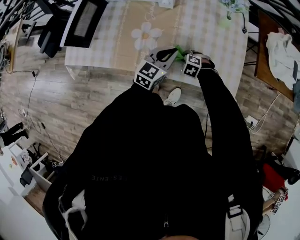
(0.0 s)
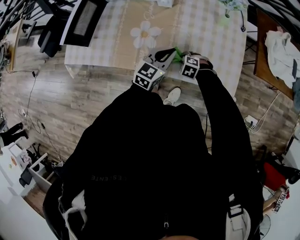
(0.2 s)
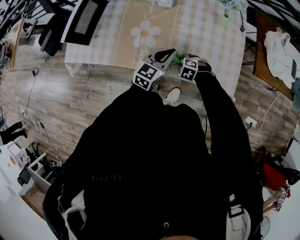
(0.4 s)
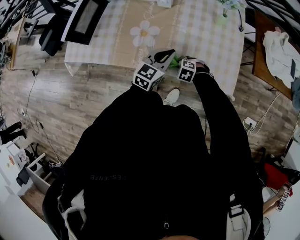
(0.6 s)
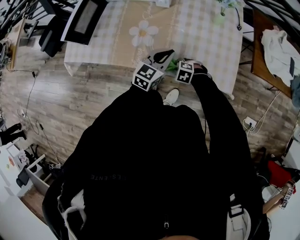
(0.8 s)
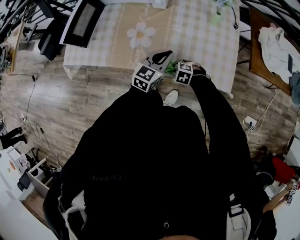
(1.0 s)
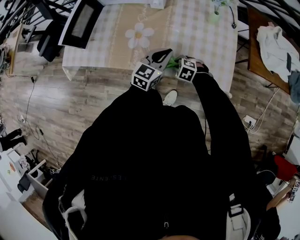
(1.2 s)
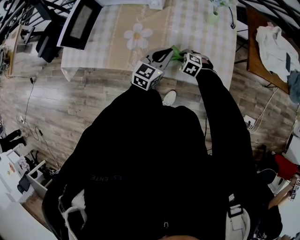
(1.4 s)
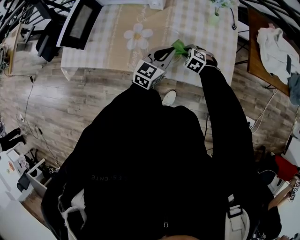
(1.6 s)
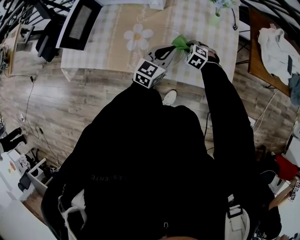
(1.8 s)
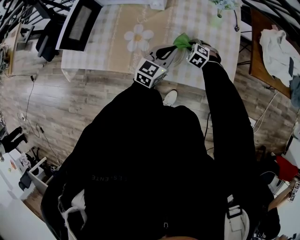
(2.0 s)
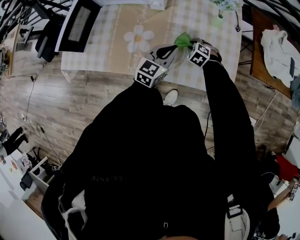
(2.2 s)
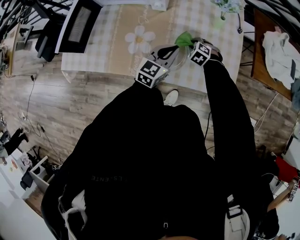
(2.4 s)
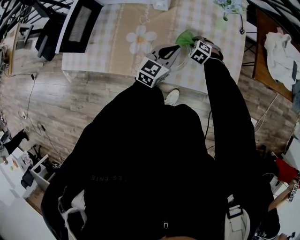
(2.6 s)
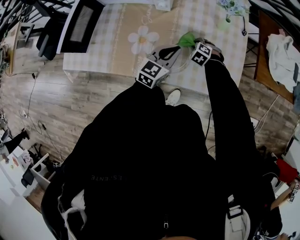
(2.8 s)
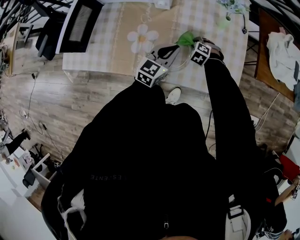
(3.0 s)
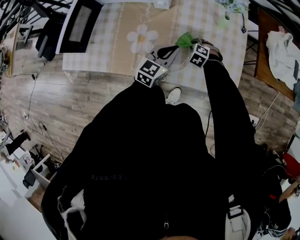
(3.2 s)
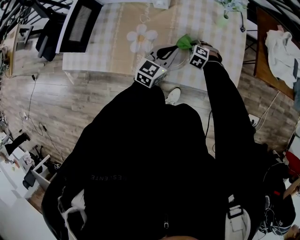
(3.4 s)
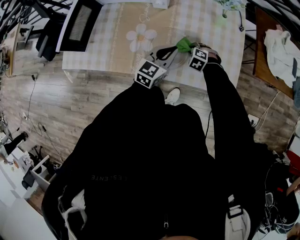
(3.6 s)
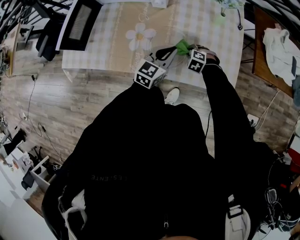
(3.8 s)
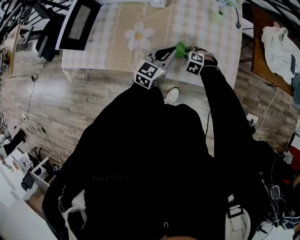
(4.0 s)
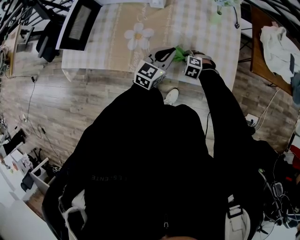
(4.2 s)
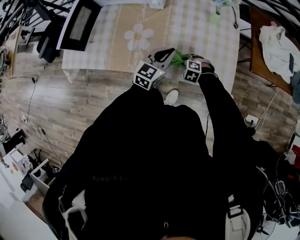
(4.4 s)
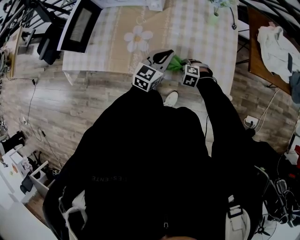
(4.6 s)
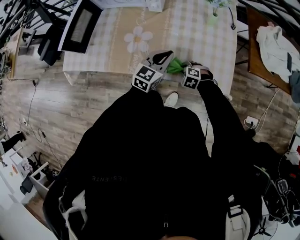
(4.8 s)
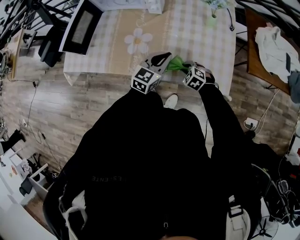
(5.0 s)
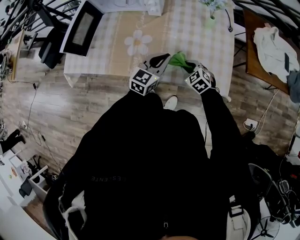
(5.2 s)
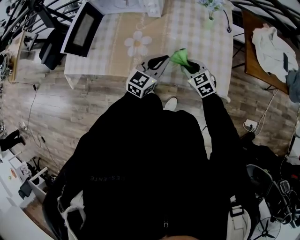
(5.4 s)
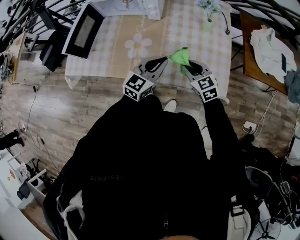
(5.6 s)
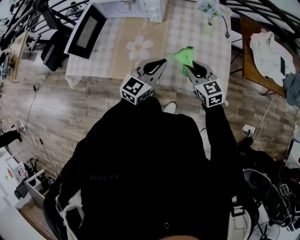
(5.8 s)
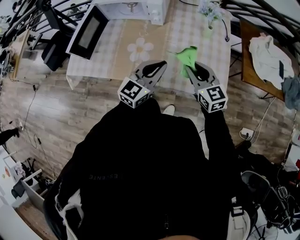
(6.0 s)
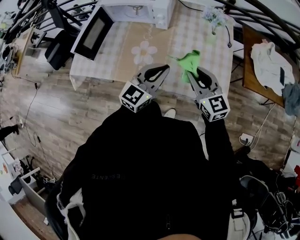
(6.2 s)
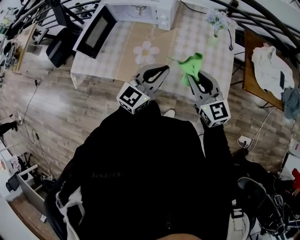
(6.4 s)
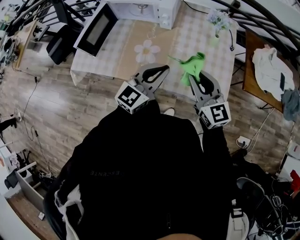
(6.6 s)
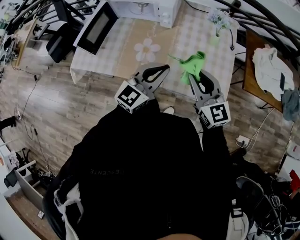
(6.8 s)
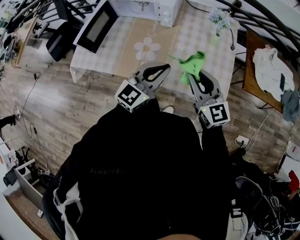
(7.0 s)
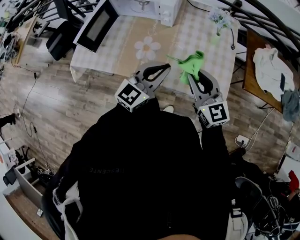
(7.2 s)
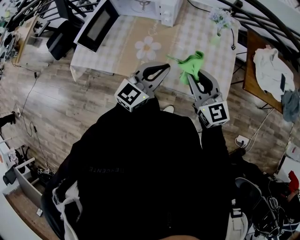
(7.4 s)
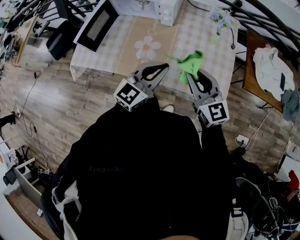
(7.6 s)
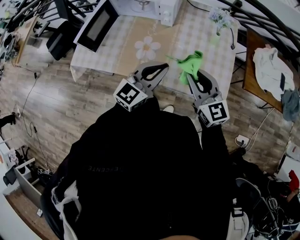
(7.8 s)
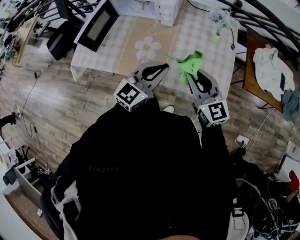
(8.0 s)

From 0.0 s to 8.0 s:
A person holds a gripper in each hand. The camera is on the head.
From 0.0 s to 1.6 s: The right gripper travels to the right by about 5 cm, and travels backward and back again, approximately 10 cm each way.
From 1.6 s to 3.2 s: The right gripper shifts roughly 10 cm forward. The left gripper goes about 5 cm forward.
From 3.2 s to 4.8 s: The right gripper heads backward, covering approximately 15 cm. Meanwhile the left gripper heads backward, covering approximately 5 cm.
From 4.8 s to 6.4 s: The right gripper moves upward, roughly 35 cm, and angles its fingers upward, by about 60 degrees. The left gripper goes some 15 cm upward and backward.
From 6.4 s to 8.0 s: The grippers make only small movements.

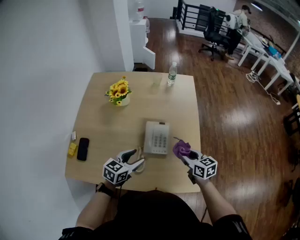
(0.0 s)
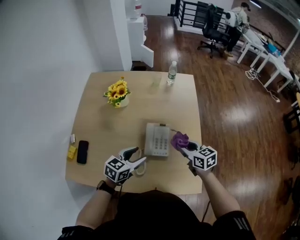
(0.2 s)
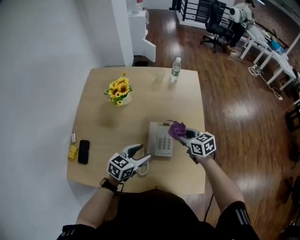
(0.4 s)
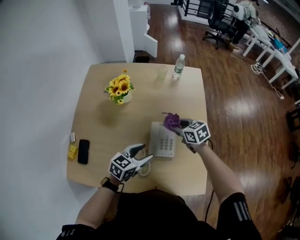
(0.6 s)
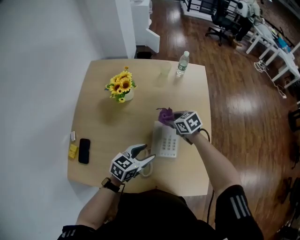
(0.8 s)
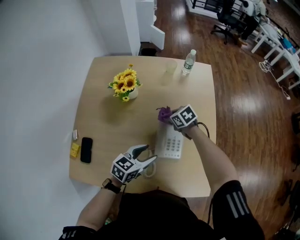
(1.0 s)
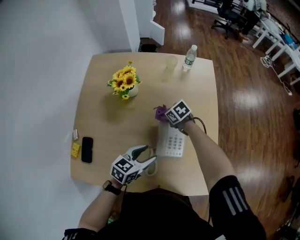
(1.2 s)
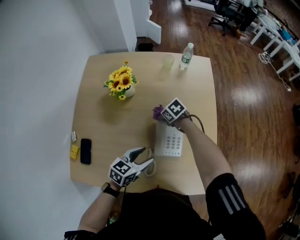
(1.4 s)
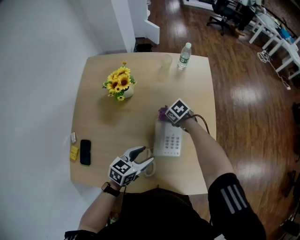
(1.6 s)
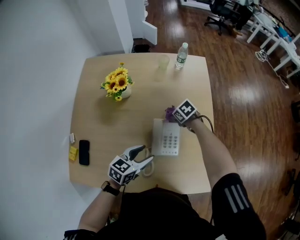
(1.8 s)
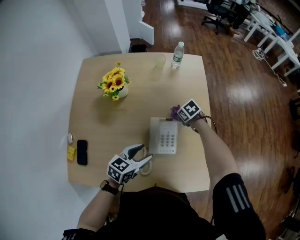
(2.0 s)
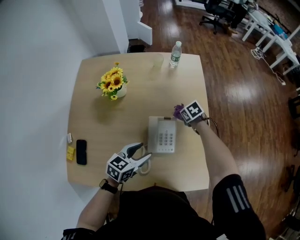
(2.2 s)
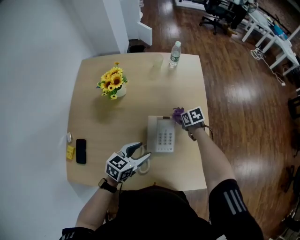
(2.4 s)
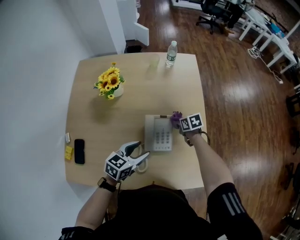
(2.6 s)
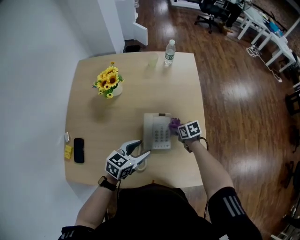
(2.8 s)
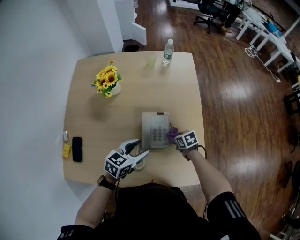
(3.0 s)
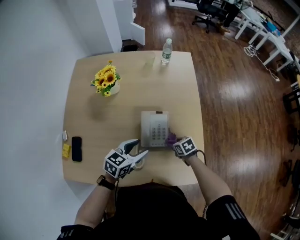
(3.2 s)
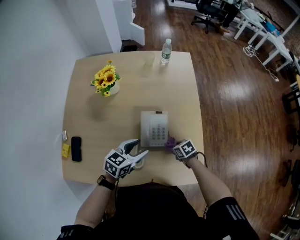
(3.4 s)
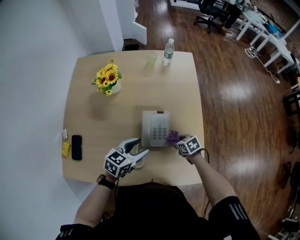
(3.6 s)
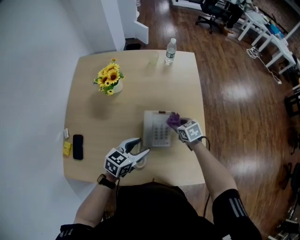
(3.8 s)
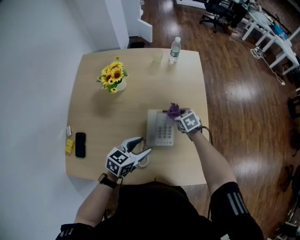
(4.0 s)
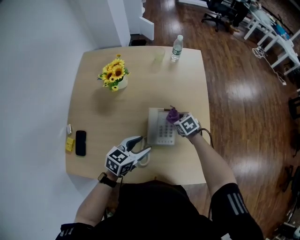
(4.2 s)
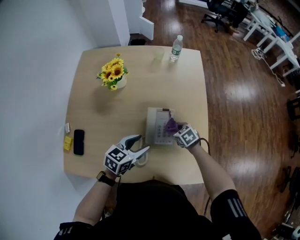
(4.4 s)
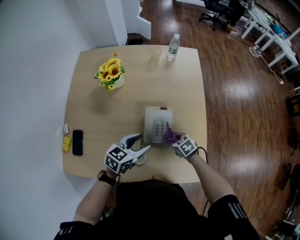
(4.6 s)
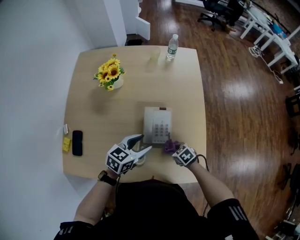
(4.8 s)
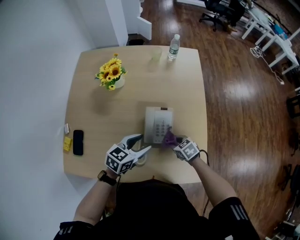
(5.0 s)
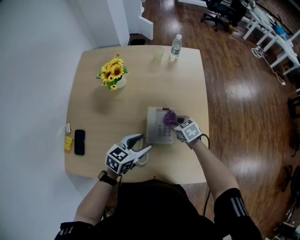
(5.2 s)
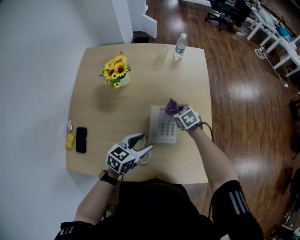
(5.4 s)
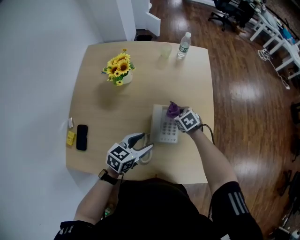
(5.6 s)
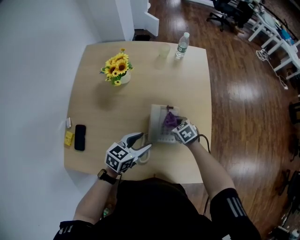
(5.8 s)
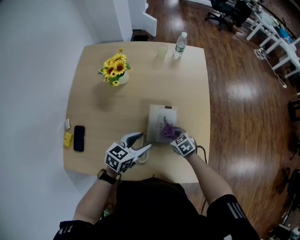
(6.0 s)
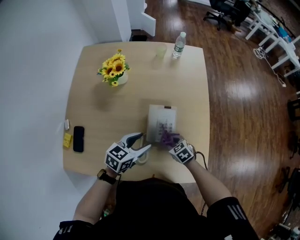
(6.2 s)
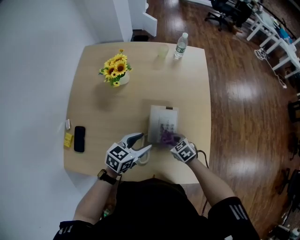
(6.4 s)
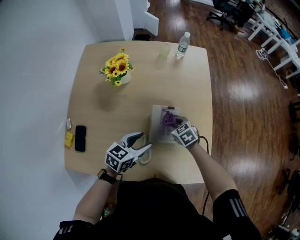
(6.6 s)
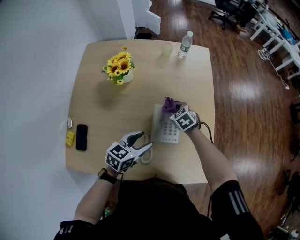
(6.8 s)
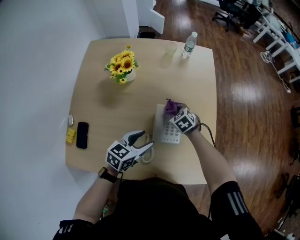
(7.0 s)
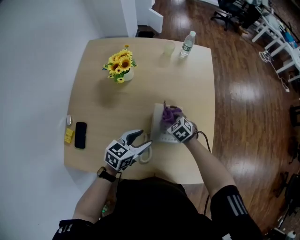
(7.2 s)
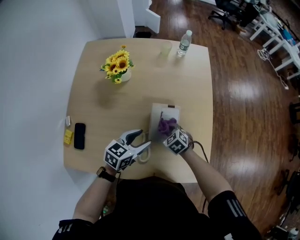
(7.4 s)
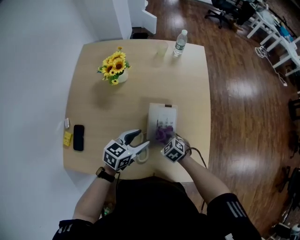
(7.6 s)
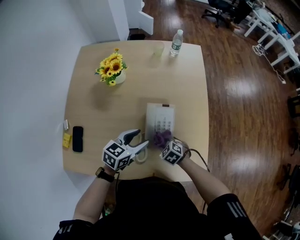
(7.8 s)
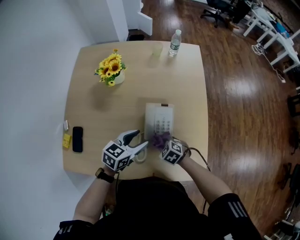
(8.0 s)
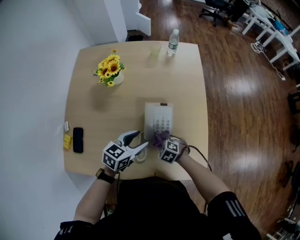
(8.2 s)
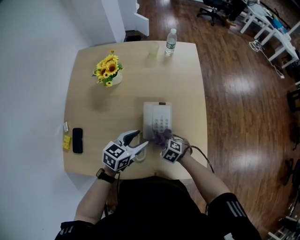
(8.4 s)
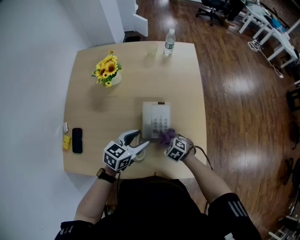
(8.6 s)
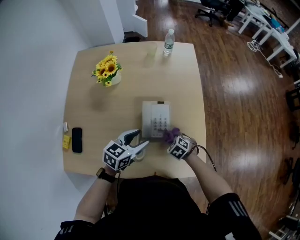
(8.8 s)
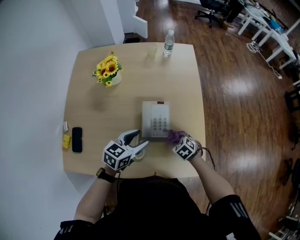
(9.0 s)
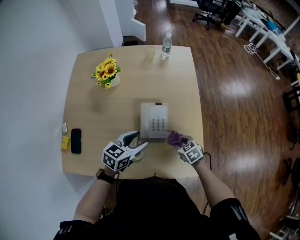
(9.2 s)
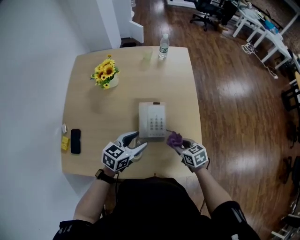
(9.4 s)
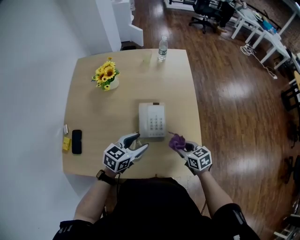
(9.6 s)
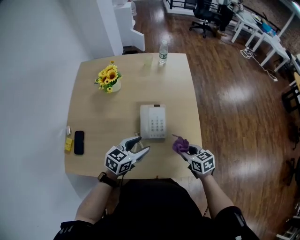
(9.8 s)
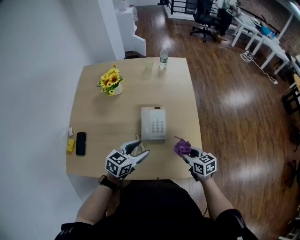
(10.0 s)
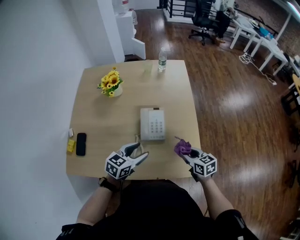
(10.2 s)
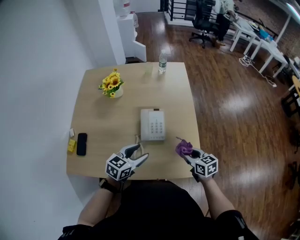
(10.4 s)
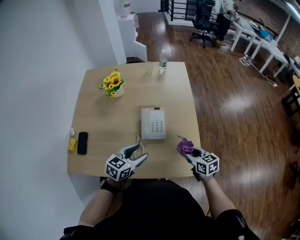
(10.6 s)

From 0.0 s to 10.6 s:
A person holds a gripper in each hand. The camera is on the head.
From 0.0 s to 1.6 s: The left gripper changes place by approximately 10 cm; the right gripper ends up approximately 35 cm from where it was, and points its fingers about 40 degrees further downward.
From 1.6 s to 3.0 s: The right gripper ends up about 20 cm from where it was, and turns by some 20 degrees.
From 3.0 s to 4.6 s: The right gripper goes forward and backward, approximately 20 cm each way, reversing 2 times.
From 4.6 s to 6.0 s: The right gripper swings forward and backward, about 20 cm each way, with 2 reversals.
From 6.0 s to 7.6 s: The right gripper moves forward and backward over some 15 cm, changing direction 2 times.
From 7.6 s to 9.0 s: The right gripper is displaced to the right by roughly 10 cm.
From 9.0 s to 10.6 s: The left gripper moves backward, about 10 cm; the right gripper heads upward, backward and to the right, covering approximately 20 cm, and points its fingers roughly 40 degrees further upward.

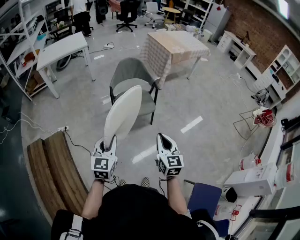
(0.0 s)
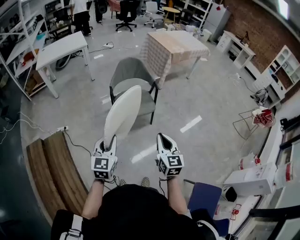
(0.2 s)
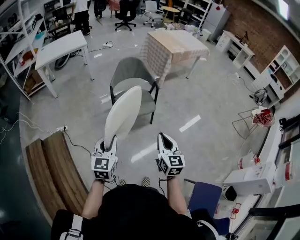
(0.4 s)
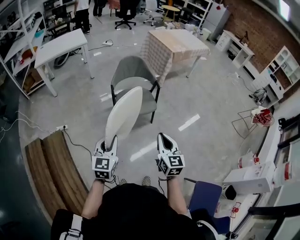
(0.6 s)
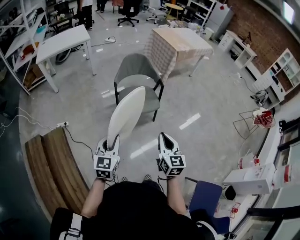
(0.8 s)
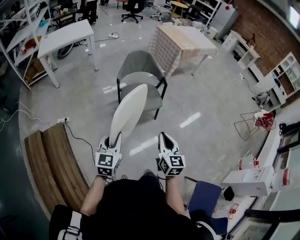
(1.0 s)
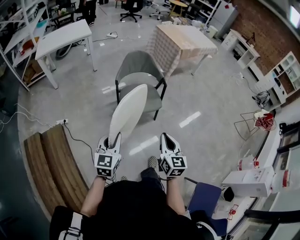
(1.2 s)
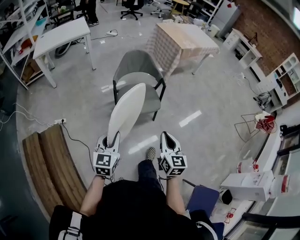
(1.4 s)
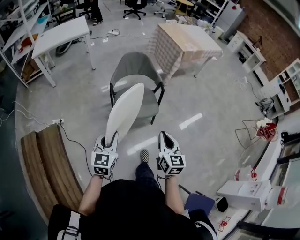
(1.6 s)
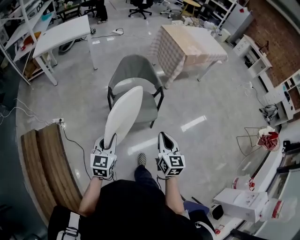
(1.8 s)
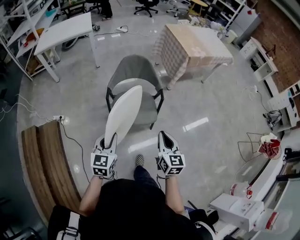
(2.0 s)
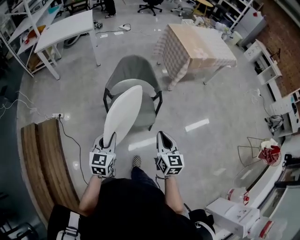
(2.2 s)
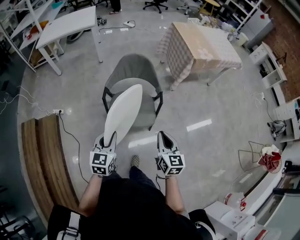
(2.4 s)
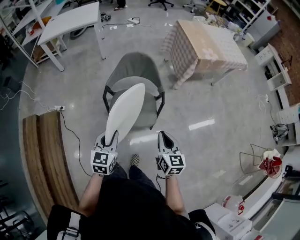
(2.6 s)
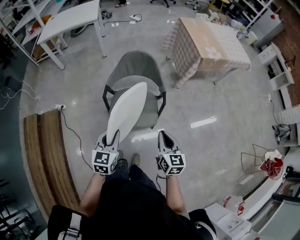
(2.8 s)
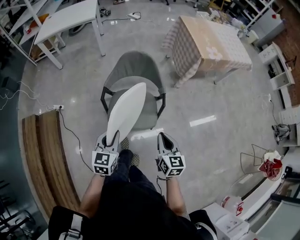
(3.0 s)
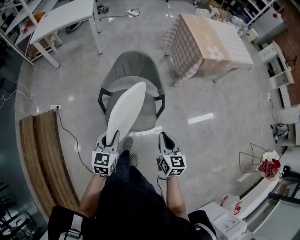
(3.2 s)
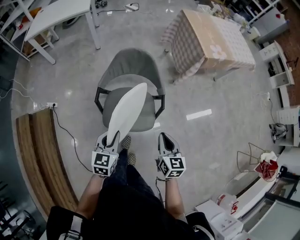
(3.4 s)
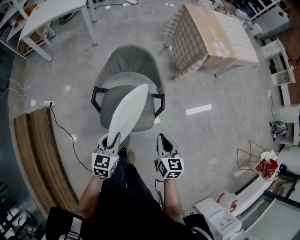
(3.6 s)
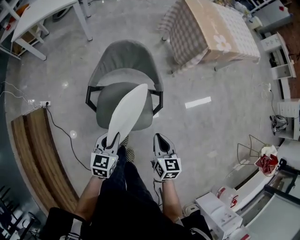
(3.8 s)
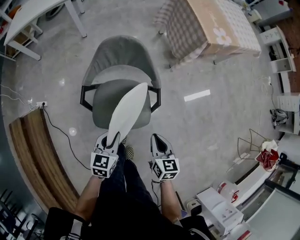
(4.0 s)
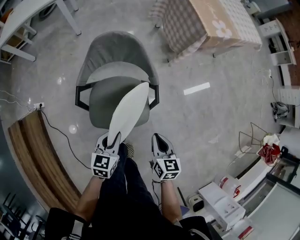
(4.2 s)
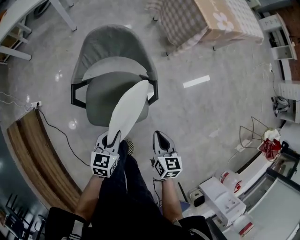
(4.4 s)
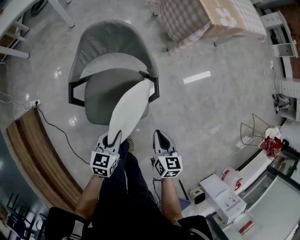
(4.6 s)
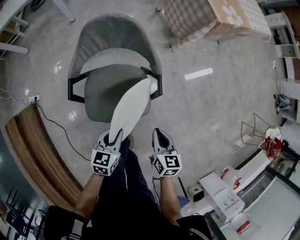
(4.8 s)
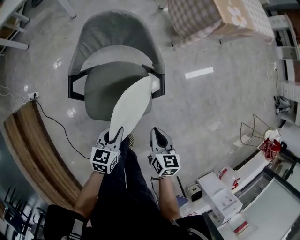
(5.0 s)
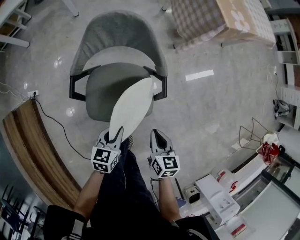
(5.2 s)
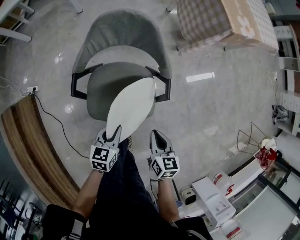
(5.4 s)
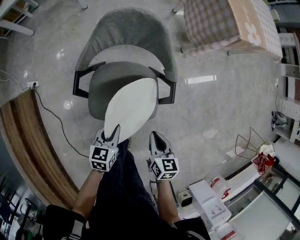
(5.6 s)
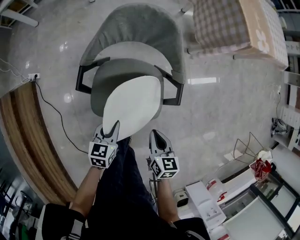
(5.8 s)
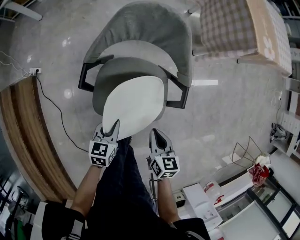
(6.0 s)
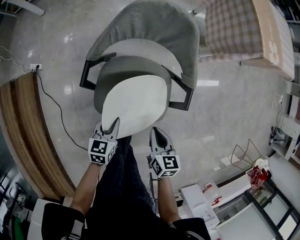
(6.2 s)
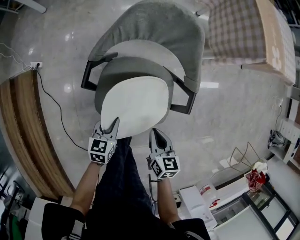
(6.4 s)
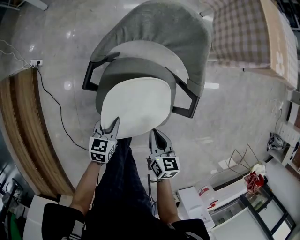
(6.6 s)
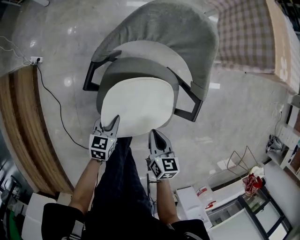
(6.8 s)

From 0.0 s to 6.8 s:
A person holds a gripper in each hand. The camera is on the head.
From 0.0 s to 1.4 s: The grippers both shift forward, to the left and downward by approximately 15 cm.
From 1.4 s to 2.8 s: Both grippers travel together forward and to the right, roughly 40 cm.
From 2.8 s to 4.0 s: The two grippers go roughly 25 cm forward and downward.
From 4.0 s to 5.4 s: Both grippers move downward, roughly 15 cm.
From 5.4 s to 6.8 s: The left gripper goes roughly 20 cm downward and to the left. The right gripper is displaced downward, to the left and forward by approximately 15 cm.
